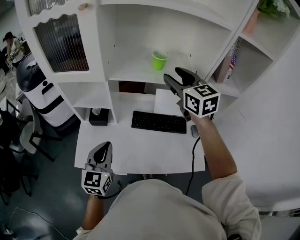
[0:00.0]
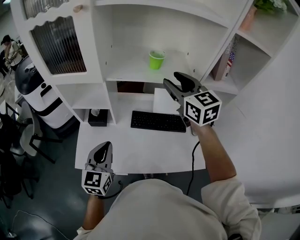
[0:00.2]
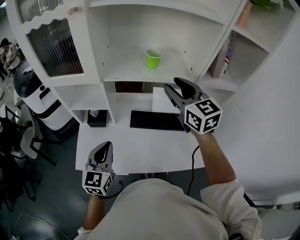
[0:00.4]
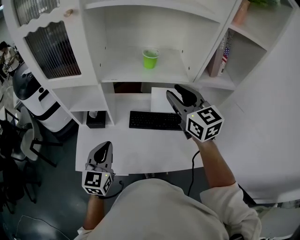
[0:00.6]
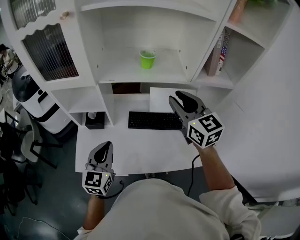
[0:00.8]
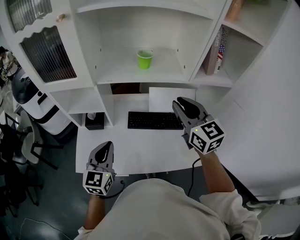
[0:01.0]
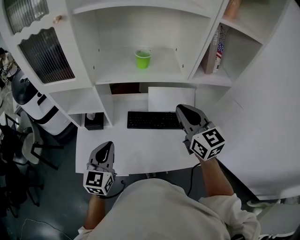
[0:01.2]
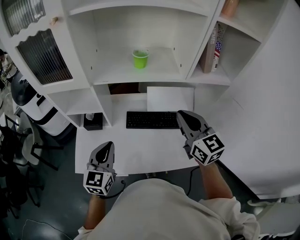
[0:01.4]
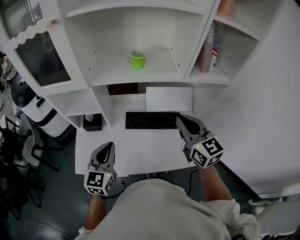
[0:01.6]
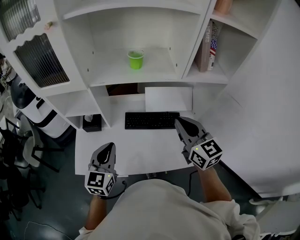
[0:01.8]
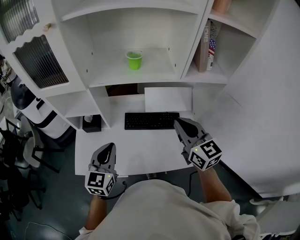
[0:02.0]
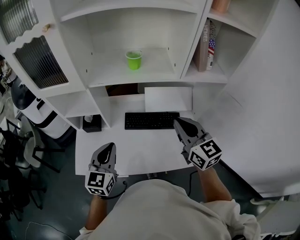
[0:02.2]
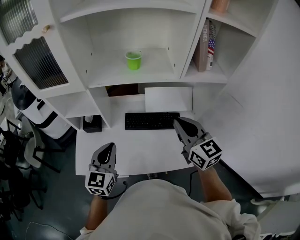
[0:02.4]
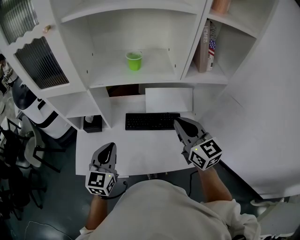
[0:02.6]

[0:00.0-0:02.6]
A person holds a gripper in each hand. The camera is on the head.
0:00.0 to 0:01.2: The right gripper shifts approximately 15 cm backward and to the right, and closes.
0:01.2 to 0:02.6: The right gripper changes place by roughly 5 cm.

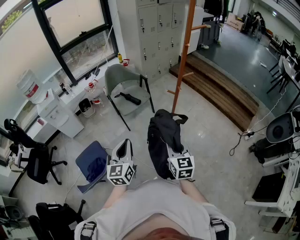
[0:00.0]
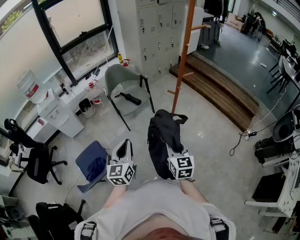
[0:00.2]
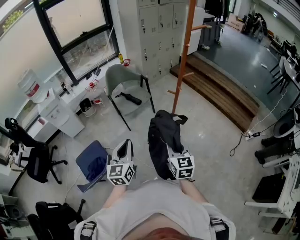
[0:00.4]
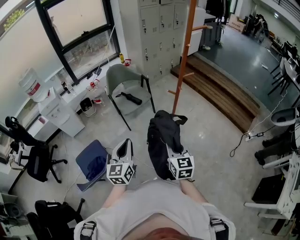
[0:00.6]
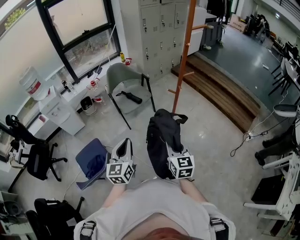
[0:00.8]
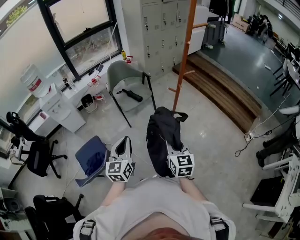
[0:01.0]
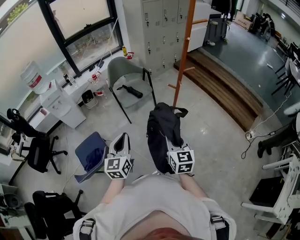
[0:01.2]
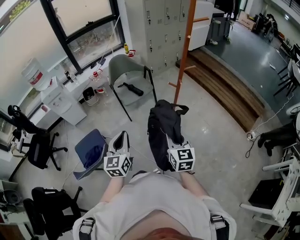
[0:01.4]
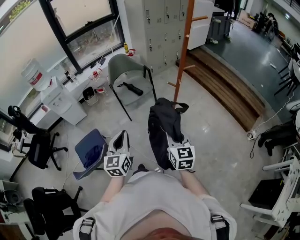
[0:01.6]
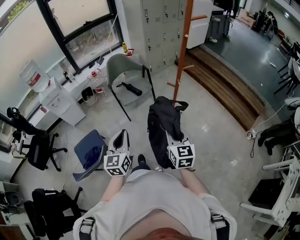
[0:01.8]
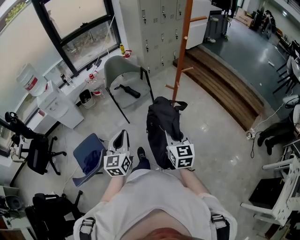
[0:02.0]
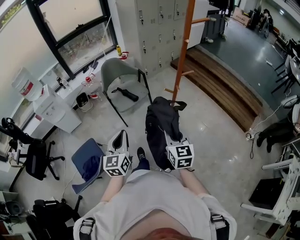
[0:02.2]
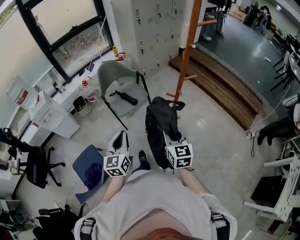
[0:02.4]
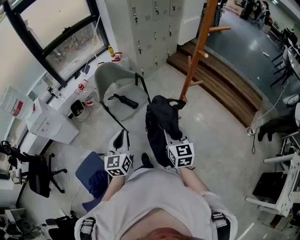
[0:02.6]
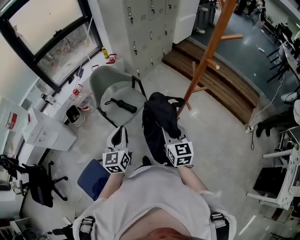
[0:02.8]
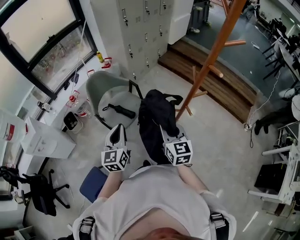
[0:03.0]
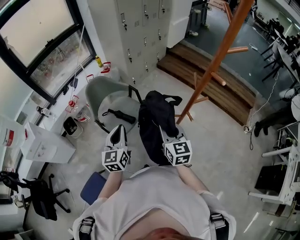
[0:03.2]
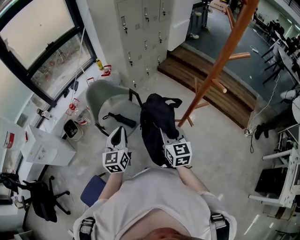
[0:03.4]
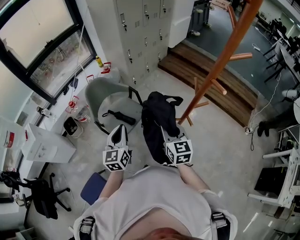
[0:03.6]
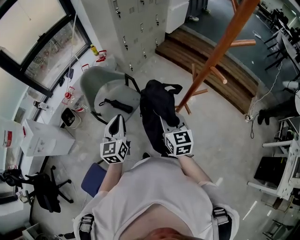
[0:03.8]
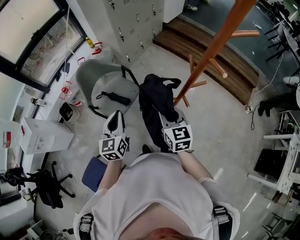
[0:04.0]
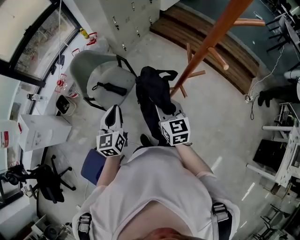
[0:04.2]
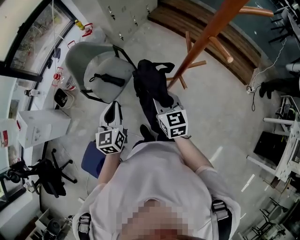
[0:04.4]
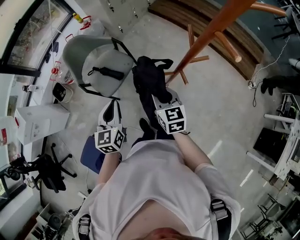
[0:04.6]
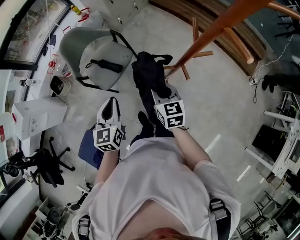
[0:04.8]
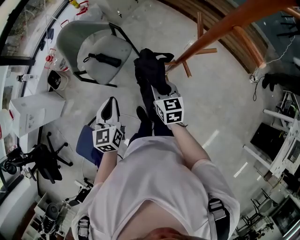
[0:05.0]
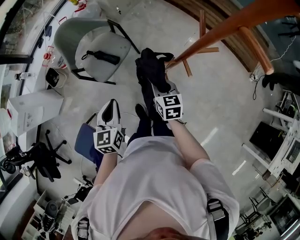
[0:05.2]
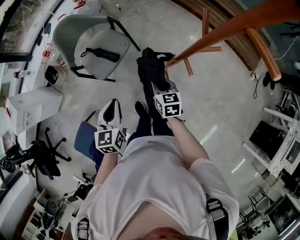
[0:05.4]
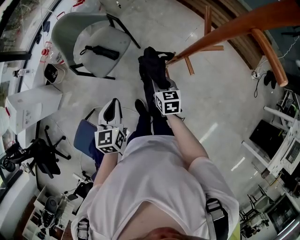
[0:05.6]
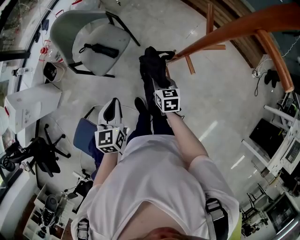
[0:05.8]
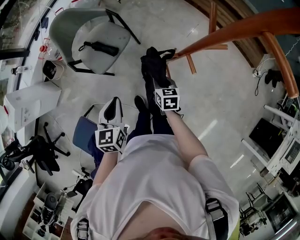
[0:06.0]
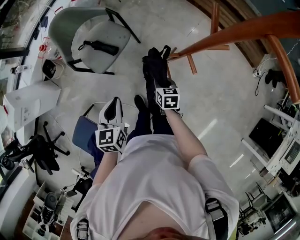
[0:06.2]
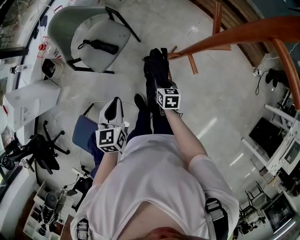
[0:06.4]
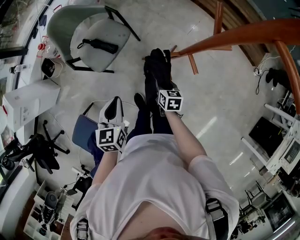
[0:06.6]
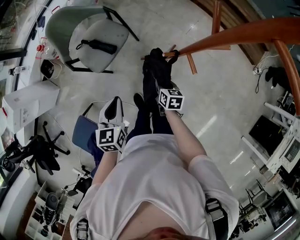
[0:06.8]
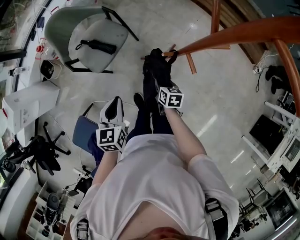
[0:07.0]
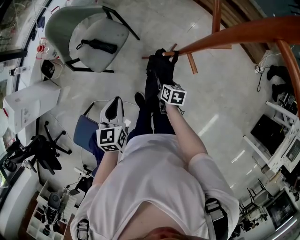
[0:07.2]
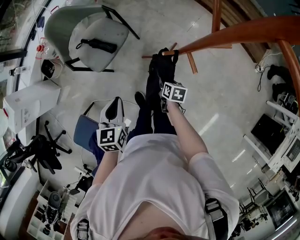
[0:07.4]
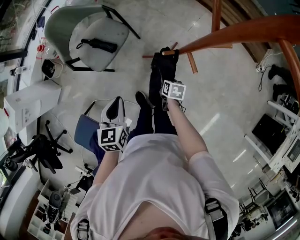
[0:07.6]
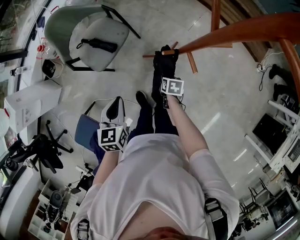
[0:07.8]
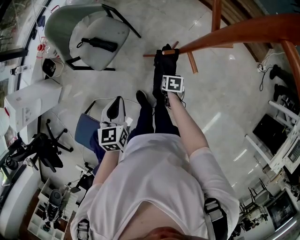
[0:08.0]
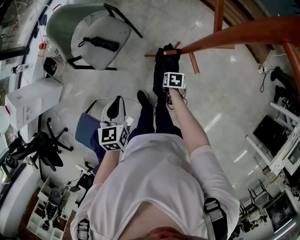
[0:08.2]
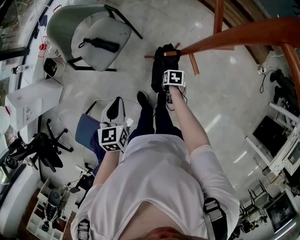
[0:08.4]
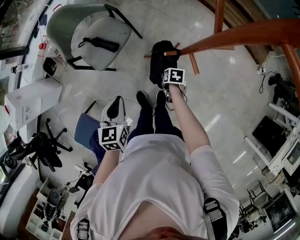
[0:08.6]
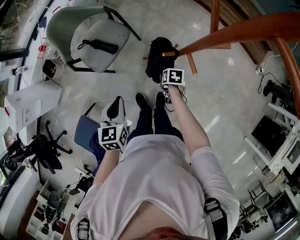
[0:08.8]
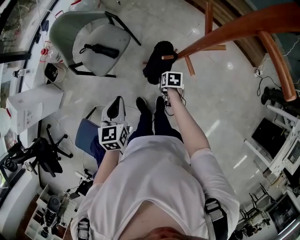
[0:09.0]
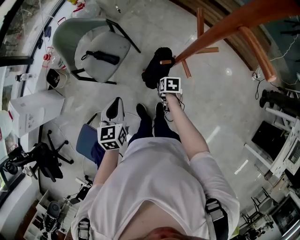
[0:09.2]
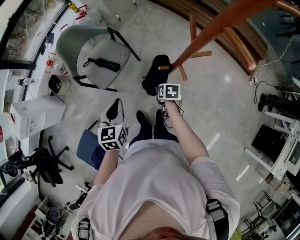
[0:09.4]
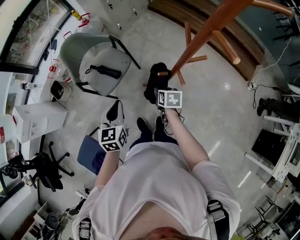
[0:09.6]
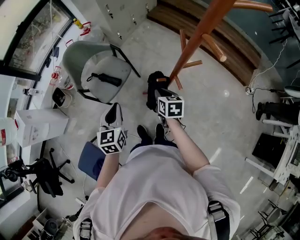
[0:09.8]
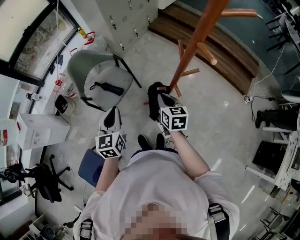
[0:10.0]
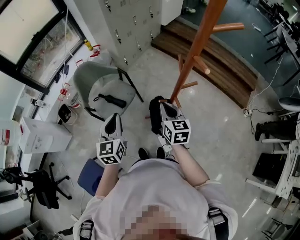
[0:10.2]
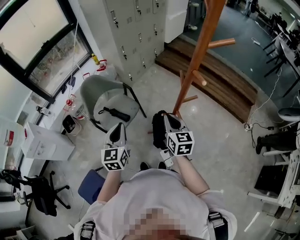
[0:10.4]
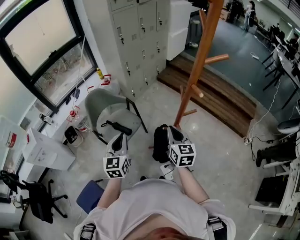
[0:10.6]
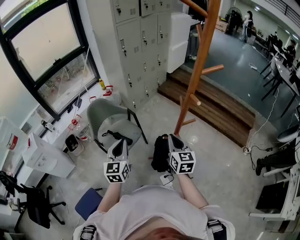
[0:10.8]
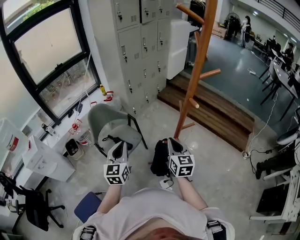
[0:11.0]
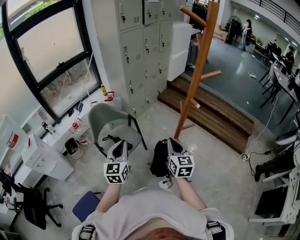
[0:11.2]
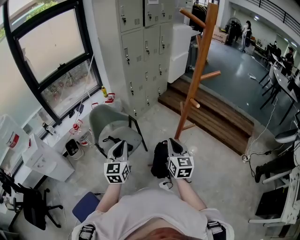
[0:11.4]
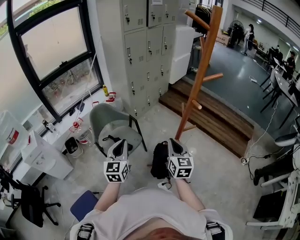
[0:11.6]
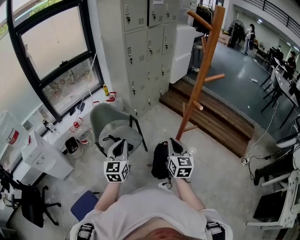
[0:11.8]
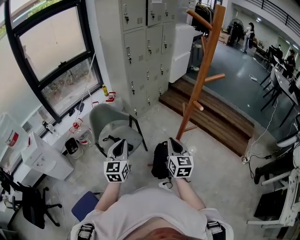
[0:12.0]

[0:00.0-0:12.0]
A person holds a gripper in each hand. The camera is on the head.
0:00.0 to 0:01.6: The grippers make only small movements.
0:01.6 to 0:03.0: Both grippers travel together forward, some 40 cm.
0:03.0 to 0:04.4: The right gripper shifts roughly 10 cm downward, forward and to the right. Meanwhile the left gripper moves to the right and forward, roughly 10 cm.
0:04.4 to 0:06.0: The left gripper travels downward by about 10 cm. The right gripper heads downward, covering about 25 cm, and changes its angle by about 30 degrees.
0:06.0 to 0:07.6: The right gripper is displaced downward and to the right by approximately 10 cm, and turns by approximately 30 degrees.
0:07.6 to 0:09.0: The right gripper opens its fingers.
0:09.0 to 0:10.4: The left gripper moves upward, about 20 cm, and swivels approximately 20 degrees. The right gripper is displaced upward by approximately 40 cm, angles its fingers upward, by roughly 50 degrees, and closes its fingers.
0:10.4 to 0:12.0: Both grippers move upward, about 5 cm.

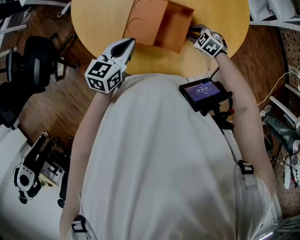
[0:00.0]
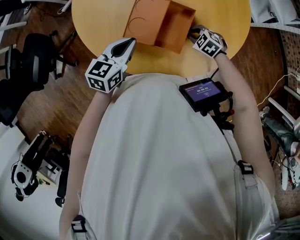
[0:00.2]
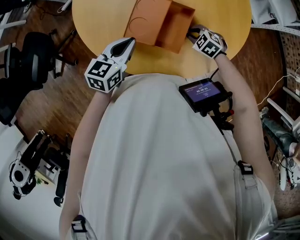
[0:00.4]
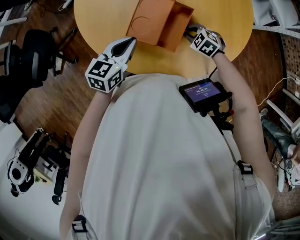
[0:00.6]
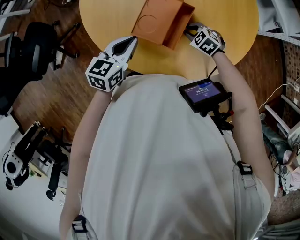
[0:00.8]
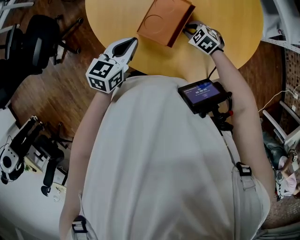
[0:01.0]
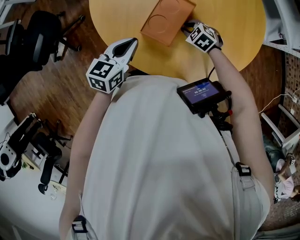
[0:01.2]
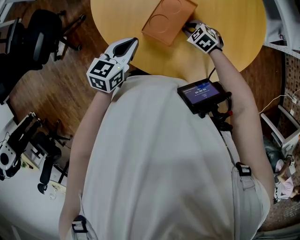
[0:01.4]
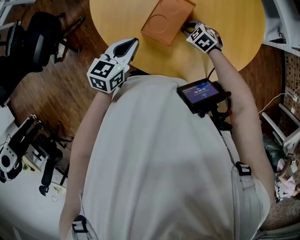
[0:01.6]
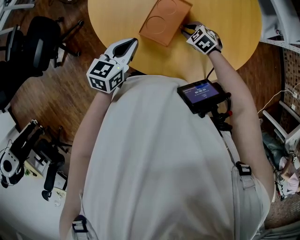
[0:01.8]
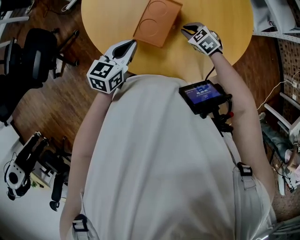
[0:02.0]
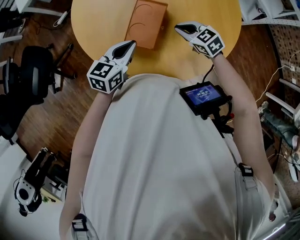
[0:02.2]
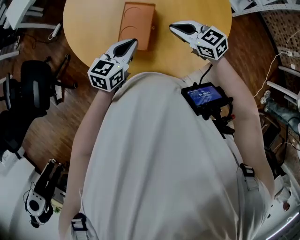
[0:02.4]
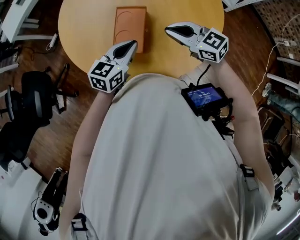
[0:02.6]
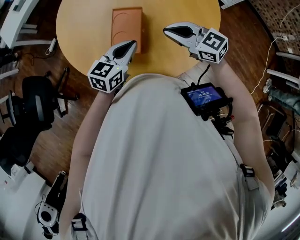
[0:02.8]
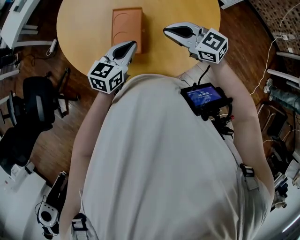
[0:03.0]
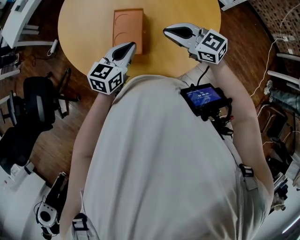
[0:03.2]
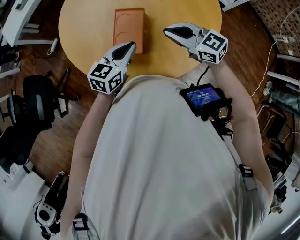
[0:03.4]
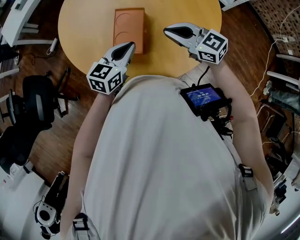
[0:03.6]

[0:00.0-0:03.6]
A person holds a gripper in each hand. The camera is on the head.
0:00.0 to 0:01.8: The right gripper is displaced to the left by roughly 5 cm.
0:01.8 to 0:03.6: The right gripper travels upward by roughly 25 cm, angles its fingers upward, by approximately 50 degrees, and closes up, while the left gripper shifts roughly 10 cm to the right, and turns by approximately 20 degrees.

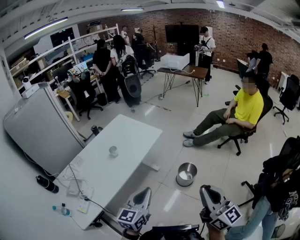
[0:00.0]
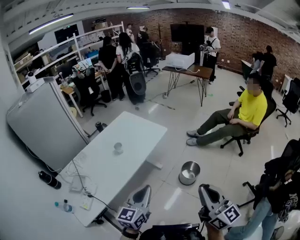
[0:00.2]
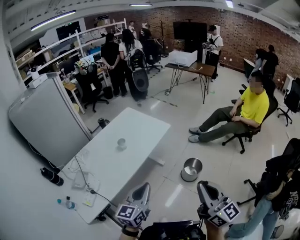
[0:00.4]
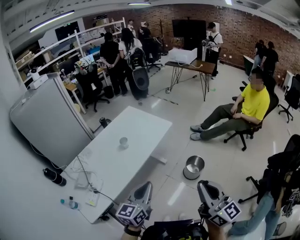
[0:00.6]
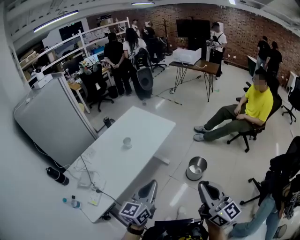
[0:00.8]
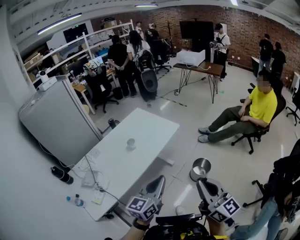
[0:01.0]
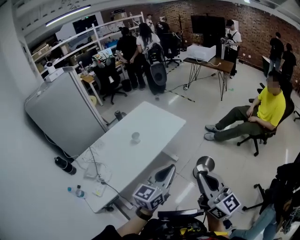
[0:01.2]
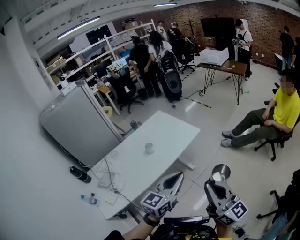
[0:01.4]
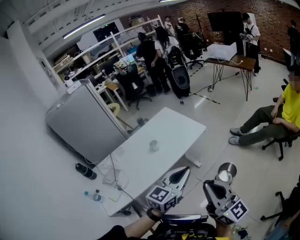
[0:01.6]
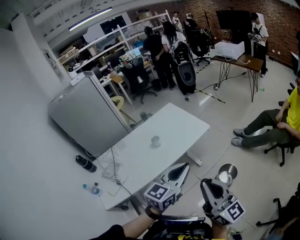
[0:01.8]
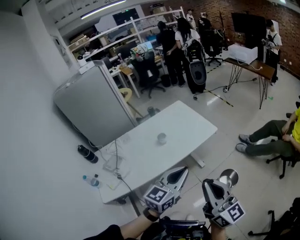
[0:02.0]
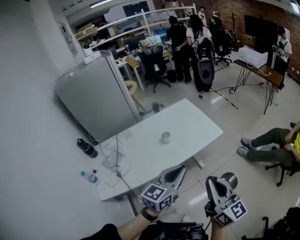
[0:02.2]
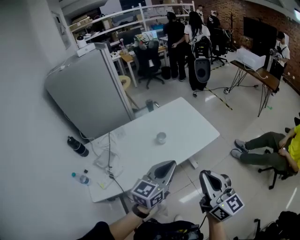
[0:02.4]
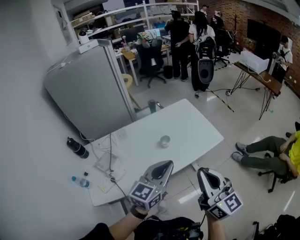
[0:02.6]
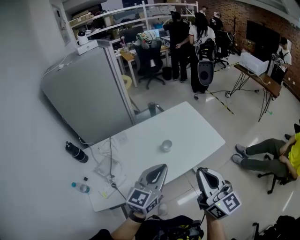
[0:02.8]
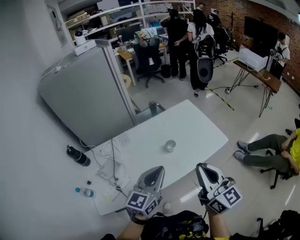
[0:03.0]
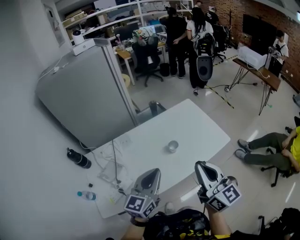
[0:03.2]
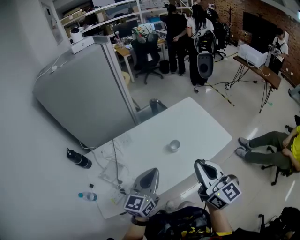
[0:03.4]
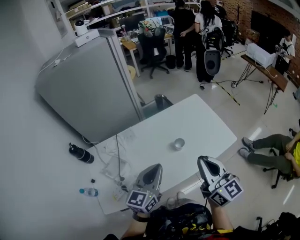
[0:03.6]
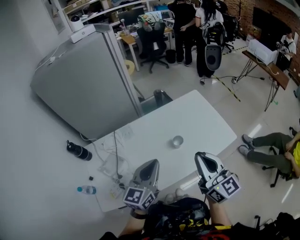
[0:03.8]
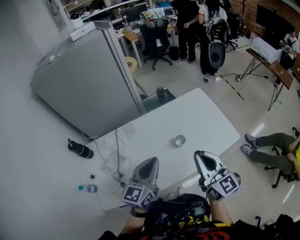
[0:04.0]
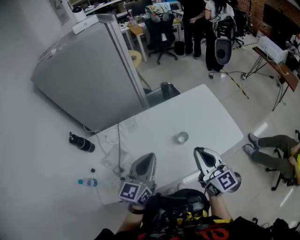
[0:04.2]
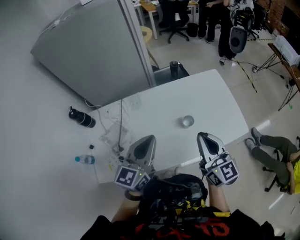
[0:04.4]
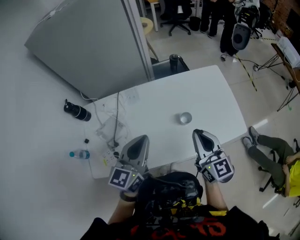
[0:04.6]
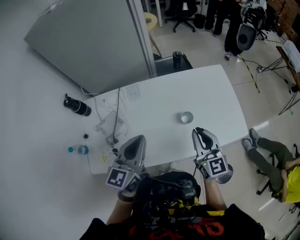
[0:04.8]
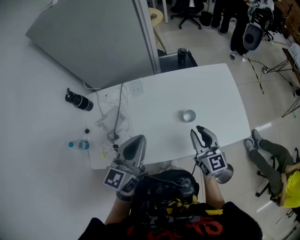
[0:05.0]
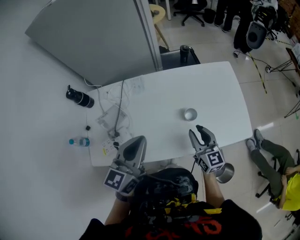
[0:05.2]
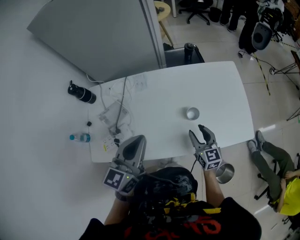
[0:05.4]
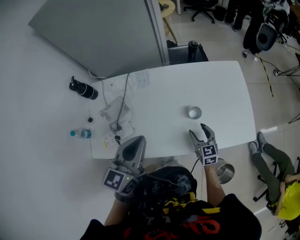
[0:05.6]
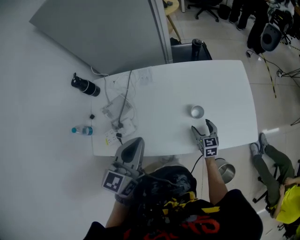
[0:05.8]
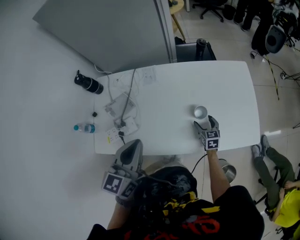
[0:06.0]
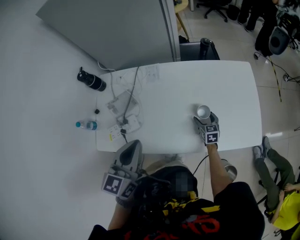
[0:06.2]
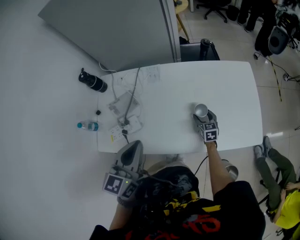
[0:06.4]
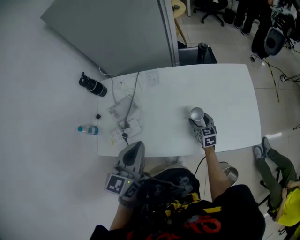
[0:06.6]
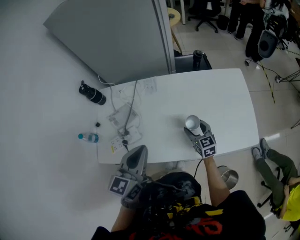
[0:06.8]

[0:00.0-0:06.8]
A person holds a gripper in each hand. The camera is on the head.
0:00.0 to 0:01.4: The left gripper shifts about 10 cm forward and upward, and moves approximately 5 cm to the left and comes back, while the right gripper is displaced to the left and forward by about 10 cm.
0:01.4 to 0:02.8: The grippers both shift forward and to the left by about 25 cm. The left gripper rotates approximately 20 degrees.
0:02.8 to 0:04.0: The left gripper moves to the left and forward, about 15 cm. Meanwhile the right gripper shifts about 15 cm forward and to the left.
0:04.0 to 0:05.4: The right gripper heads downward, covering about 25 cm, turns by some 30 degrees, and opens. The left gripper changes place by some 5 cm.
0:05.4 to 0:06.8: The left gripper changes place by approximately 5 cm. Meanwhile the right gripper heads to the left, covering about 5 cm, and reaches approximately 15 cm downward, then returns.
